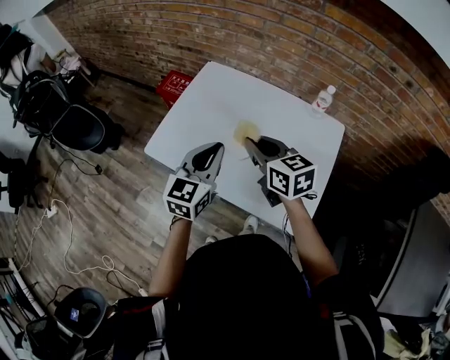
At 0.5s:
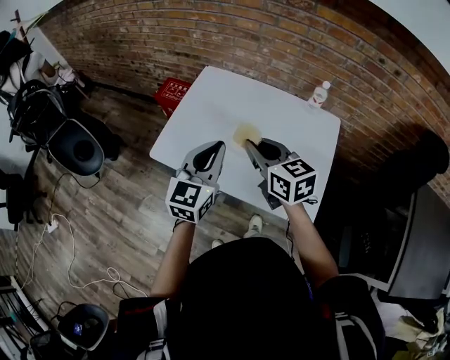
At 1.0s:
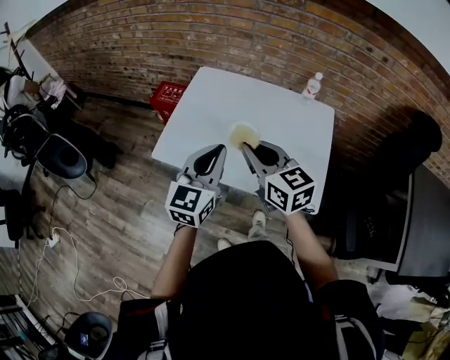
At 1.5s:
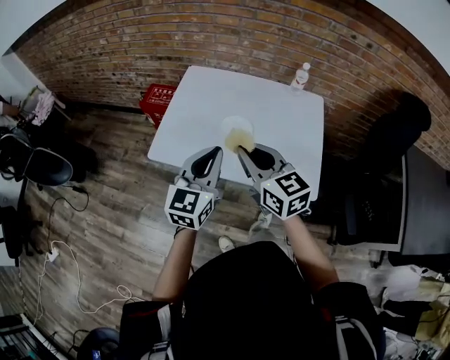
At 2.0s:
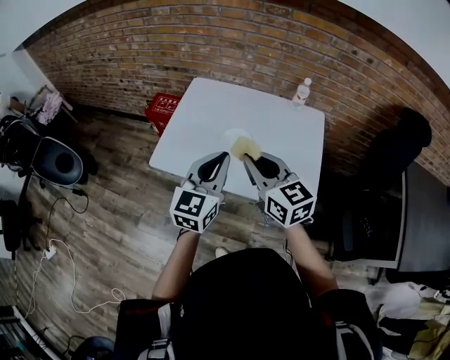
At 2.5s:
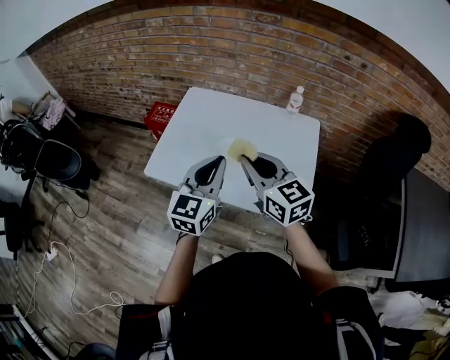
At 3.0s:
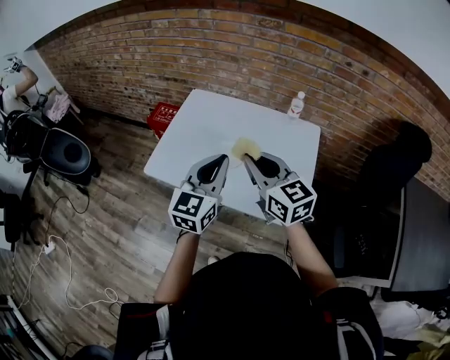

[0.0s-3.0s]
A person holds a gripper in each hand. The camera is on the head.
0.0s to 1.5s: The right gripper travels backward, to the left and upward by about 15 cm. The left gripper shifts about 10 cm backward and to the left.
1.5s to 3.0s: Both grippers move to the right, about 10 cm.

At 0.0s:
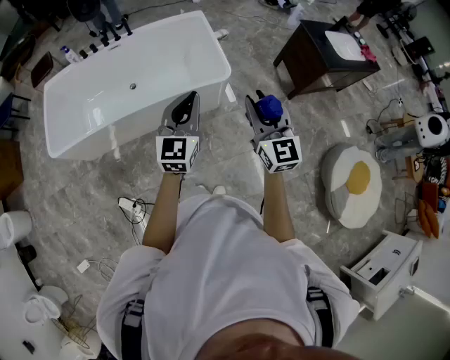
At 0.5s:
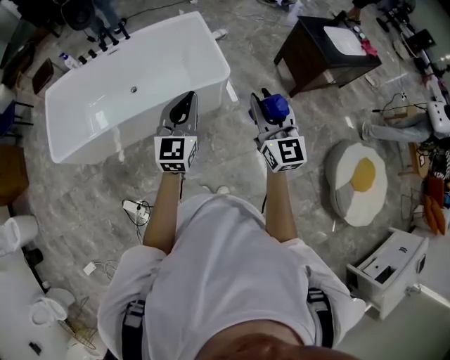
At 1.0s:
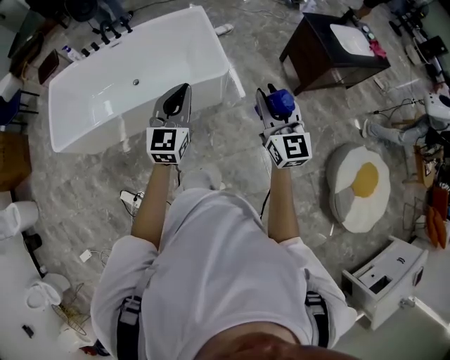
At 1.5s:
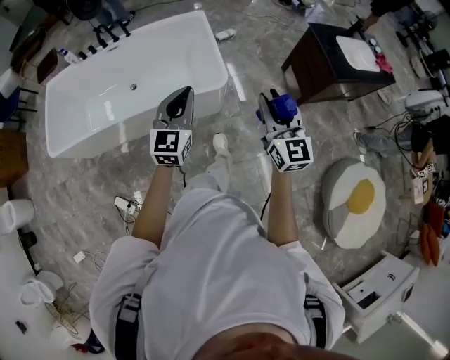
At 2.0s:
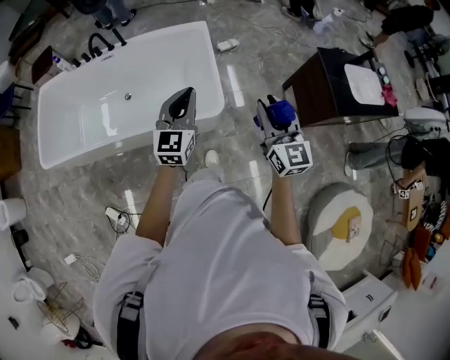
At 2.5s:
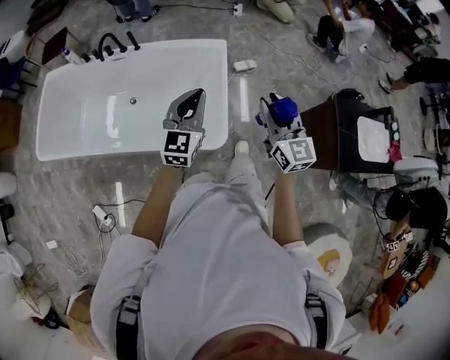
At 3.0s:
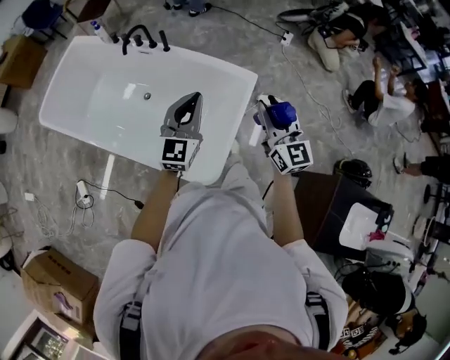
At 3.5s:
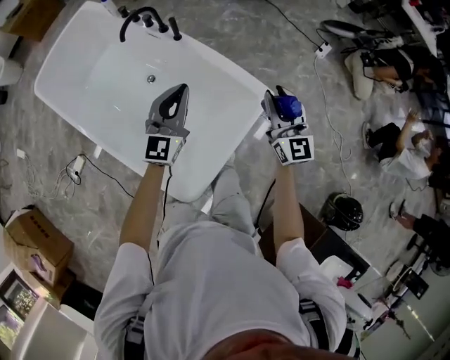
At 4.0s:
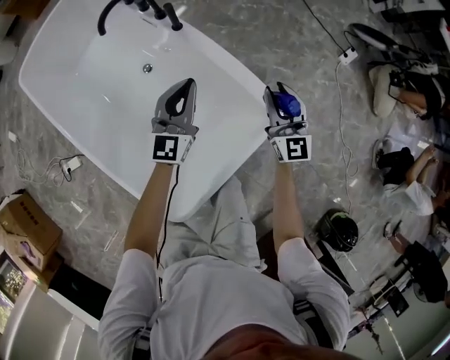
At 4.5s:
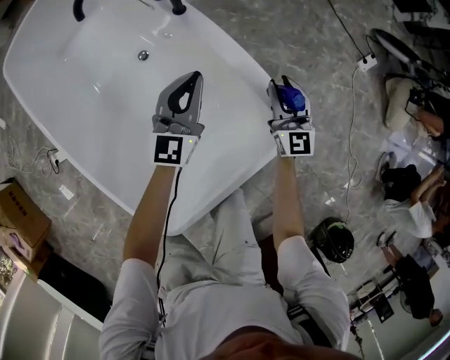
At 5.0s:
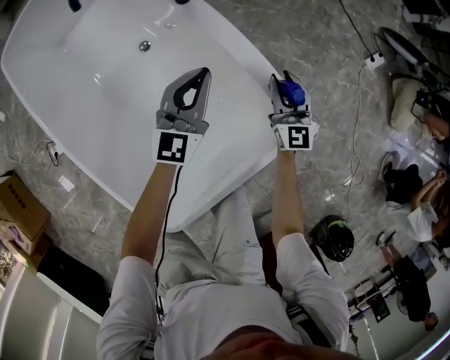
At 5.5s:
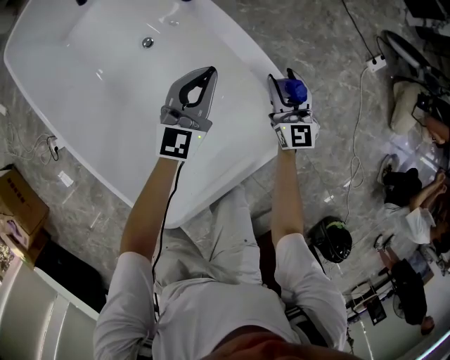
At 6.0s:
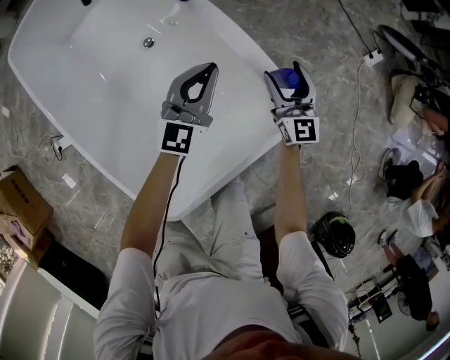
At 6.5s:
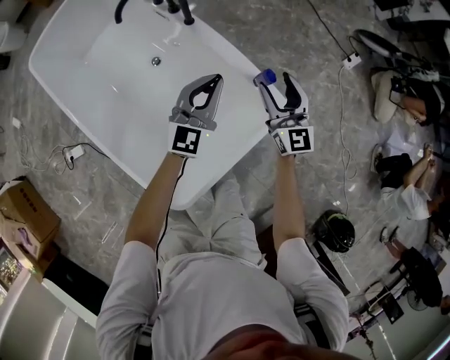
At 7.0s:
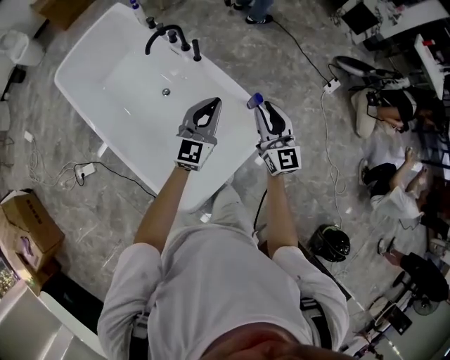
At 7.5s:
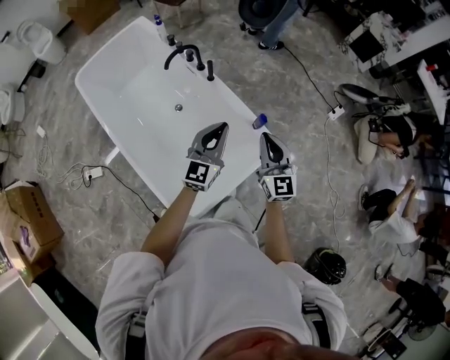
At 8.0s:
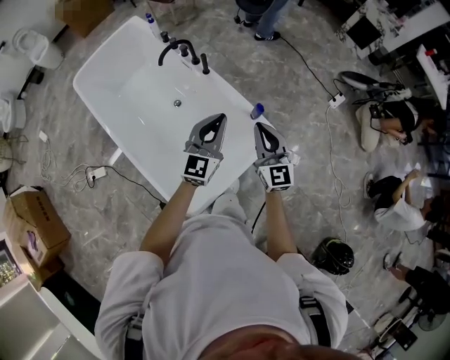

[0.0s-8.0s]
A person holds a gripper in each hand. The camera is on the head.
0.0s to 2.0s: The right gripper is displaced forward and to the right by roughly 35 cm. Meanwhile the left gripper is displaced forward by approximately 35 cm.
2.0s to 4.0s: The two grippers travel together, about 80 cm. The right gripper swivels roughly 50 degrees; the left gripper changes its angle by roughly 50 degrees.
4.0s to 6.0s: The left gripper moves downward, about 10 cm; the right gripper is displaced downward by roughly 15 cm, and opens its fingers.
6.0s to 8.0s: Both grippers travel together upward and backward, roughly 40 cm. The right gripper closes up.

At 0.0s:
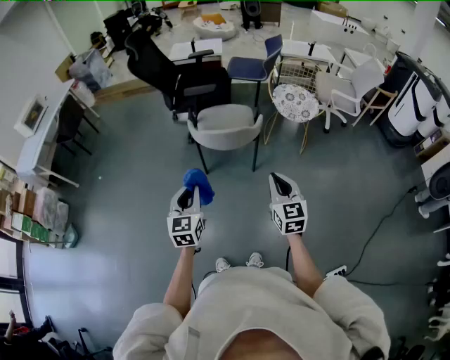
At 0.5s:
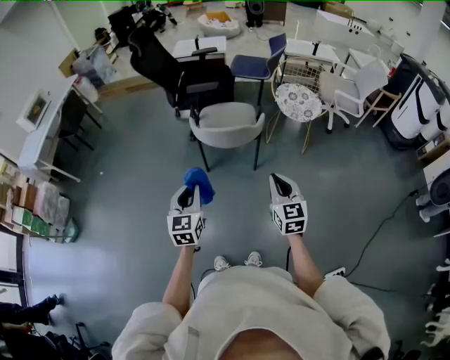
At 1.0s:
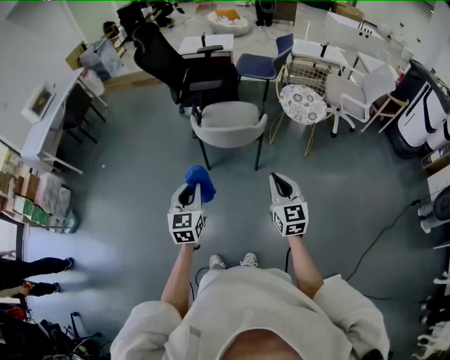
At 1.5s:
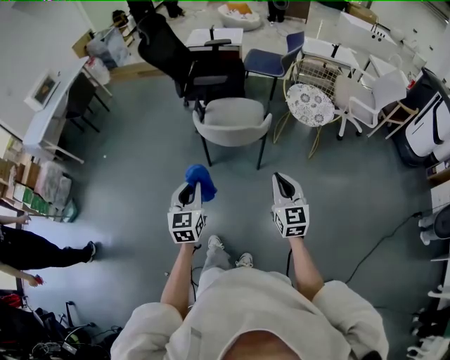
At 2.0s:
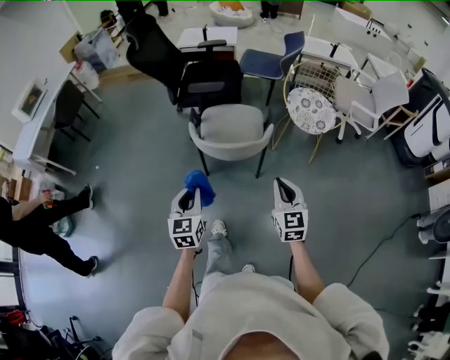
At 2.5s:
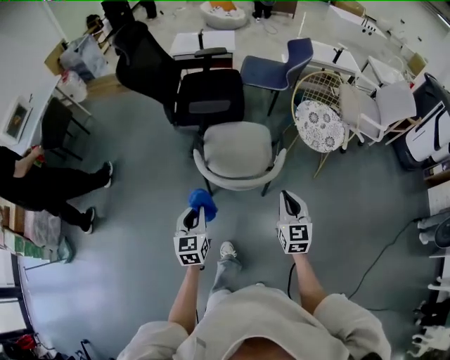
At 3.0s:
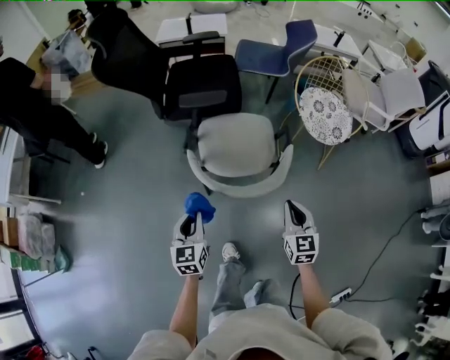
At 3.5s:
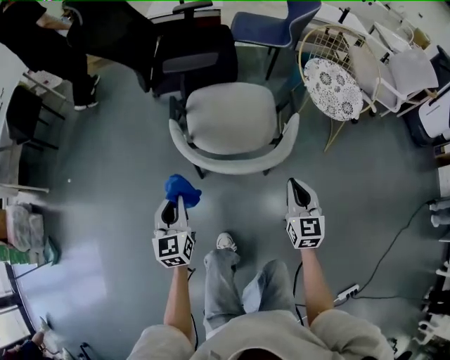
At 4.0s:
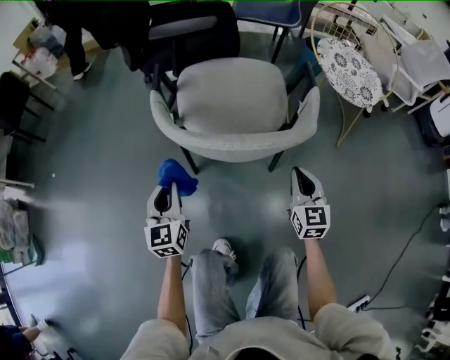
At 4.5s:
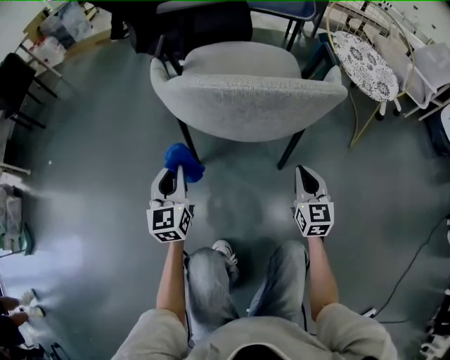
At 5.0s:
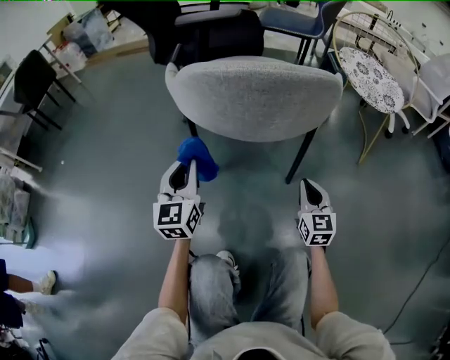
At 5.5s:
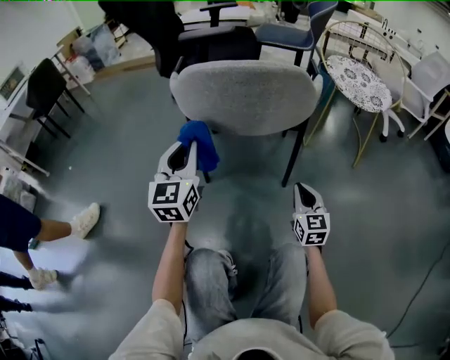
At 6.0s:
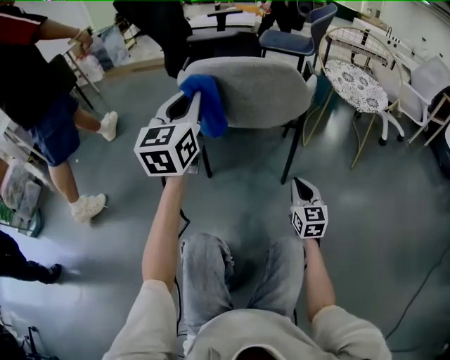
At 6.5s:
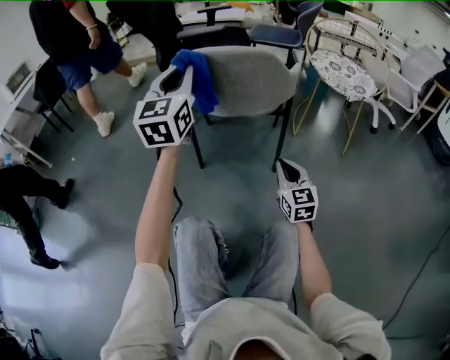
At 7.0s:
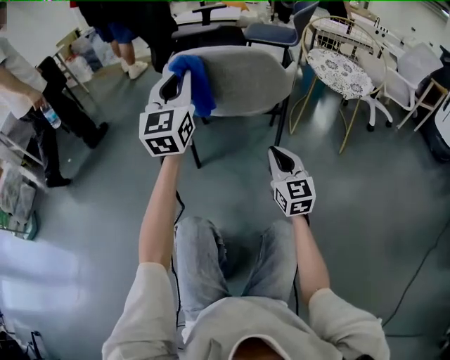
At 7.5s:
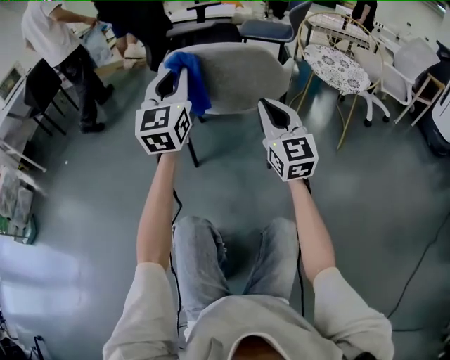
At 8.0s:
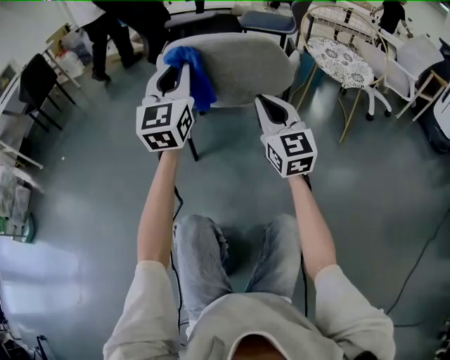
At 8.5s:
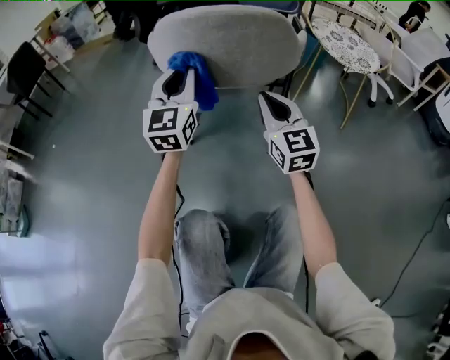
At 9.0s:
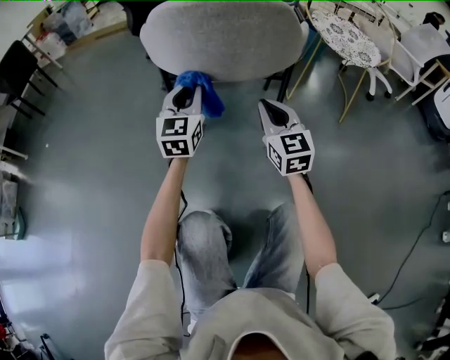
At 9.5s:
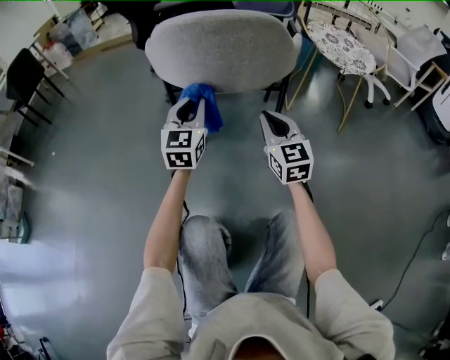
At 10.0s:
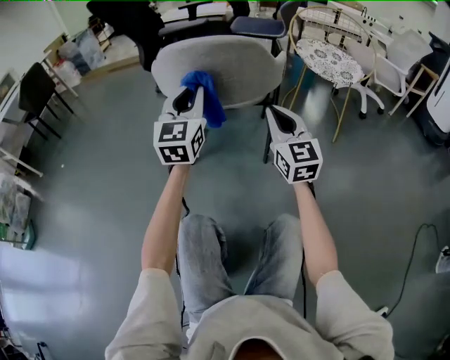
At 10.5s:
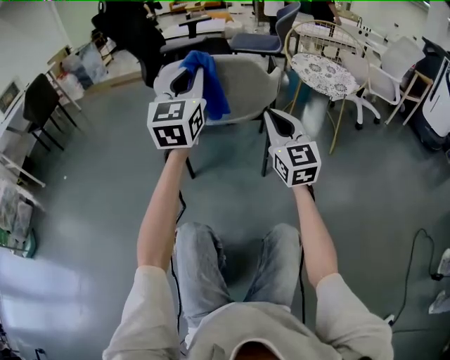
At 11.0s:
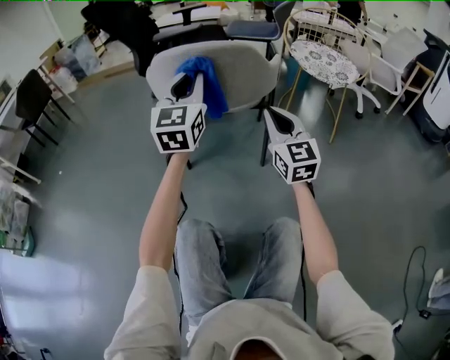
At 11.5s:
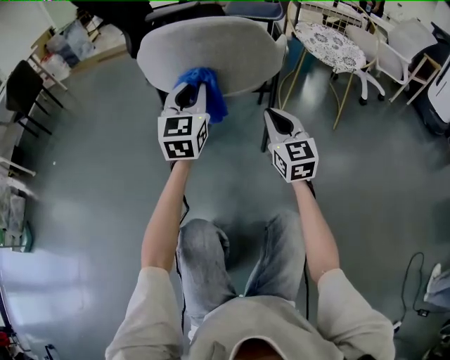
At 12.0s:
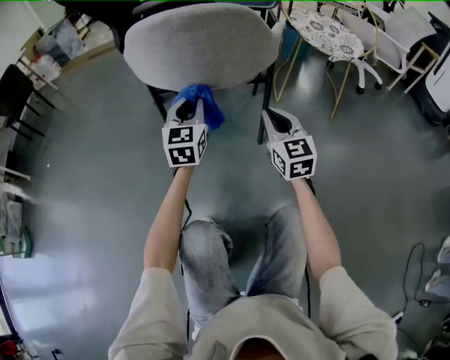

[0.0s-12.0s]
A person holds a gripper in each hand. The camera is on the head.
0.0s to 2.0s: The left gripper goes some 15 cm forward and downward. The right gripper travels forward by approximately 15 cm.
2.0s to 4.0s: The grippers both shift downward and forward by about 50 cm.
4.0s to 6.0s: The right gripper shifts about 15 cm downward and backward; the left gripper shifts approximately 20 cm upward and to the right.
6.0s to 8.0s: The right gripper goes about 25 cm upward and to the left, and rotates about 20 degrees.
8.0s to 10.0s: The left gripper moves approximately 20 cm downward and comes back. Meanwhile the right gripper shifts about 5 cm to the right, and travels downward and back again, about 15 cm each way.
10.0s to 12.0s: Both grippers travel together downward, approximately 15 cm.

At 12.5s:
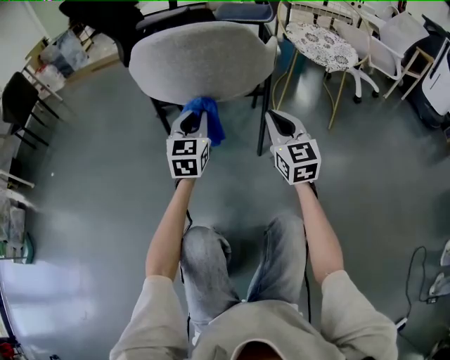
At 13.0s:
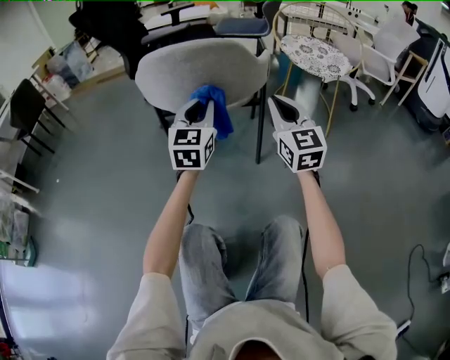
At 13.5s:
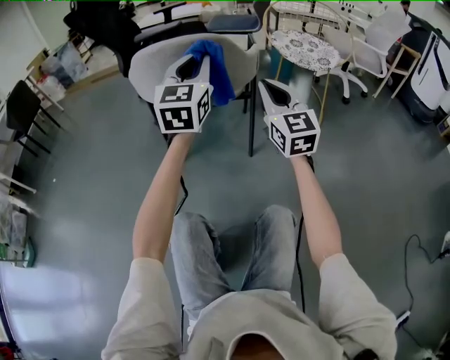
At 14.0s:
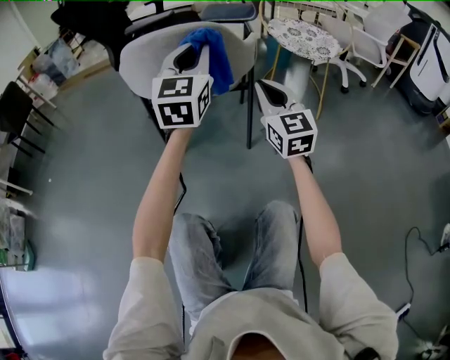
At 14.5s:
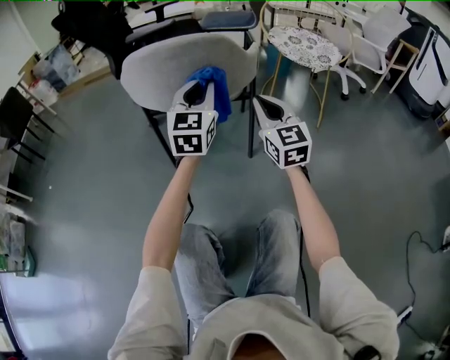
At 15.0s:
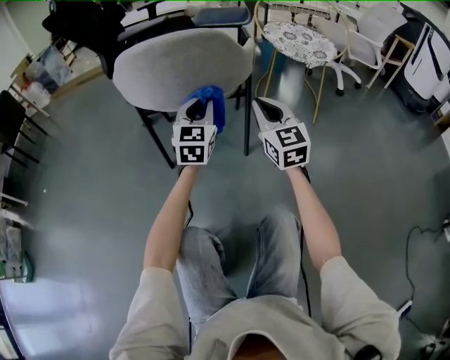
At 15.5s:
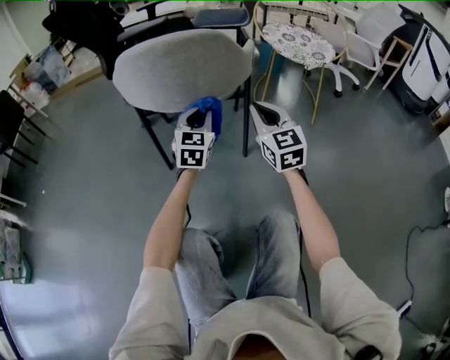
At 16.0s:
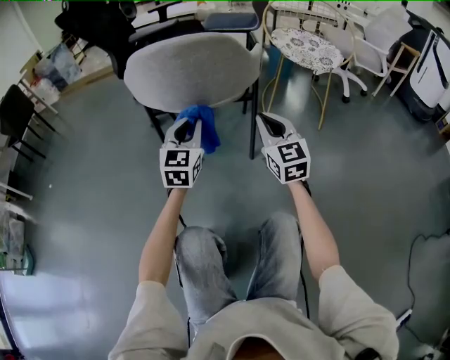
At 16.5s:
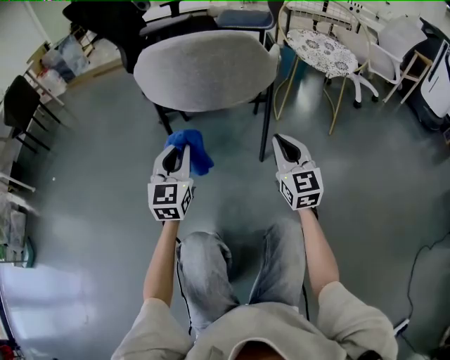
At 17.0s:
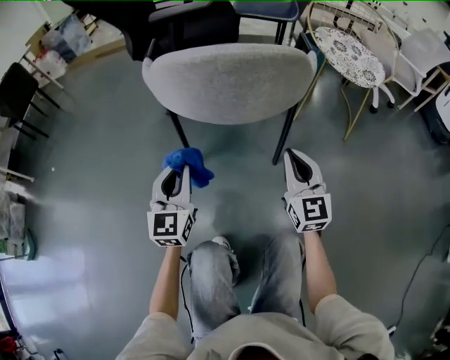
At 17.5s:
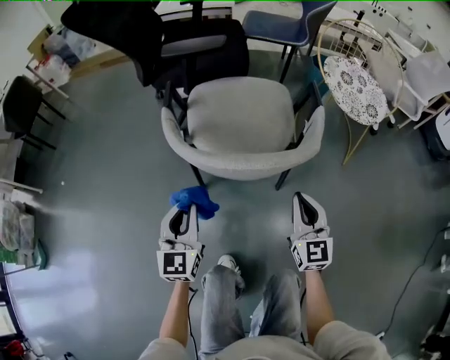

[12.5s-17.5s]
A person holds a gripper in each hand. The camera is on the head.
12.5s to 15.0s: The right gripper goes upward and returns, approximately 15 cm each way. The left gripper travels to the right by about 5 cm, and goes upward and returns, approximately 20 cm each way.
15.0s to 17.5s: The right gripper shifts approximately 5 cm to the left, while the left gripper travels to the left by about 20 cm.
